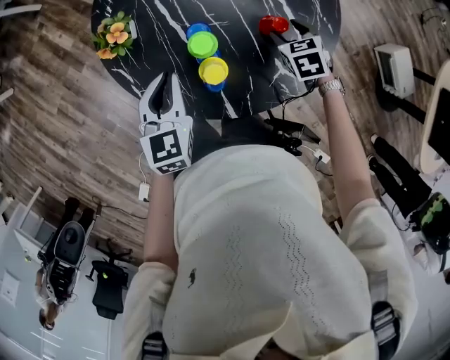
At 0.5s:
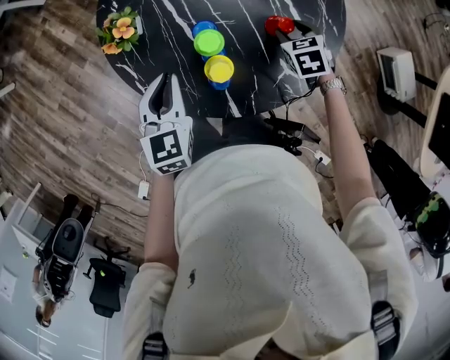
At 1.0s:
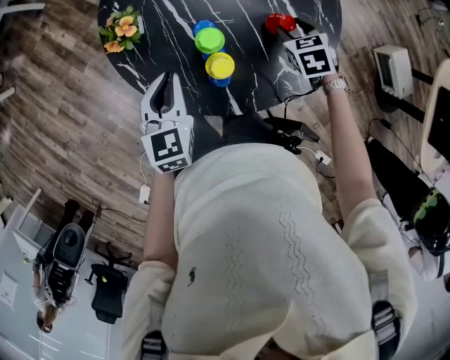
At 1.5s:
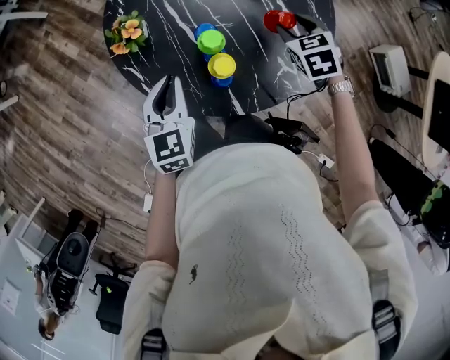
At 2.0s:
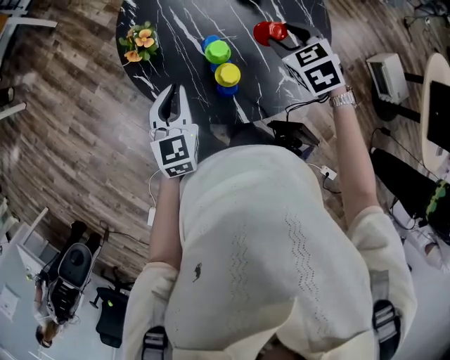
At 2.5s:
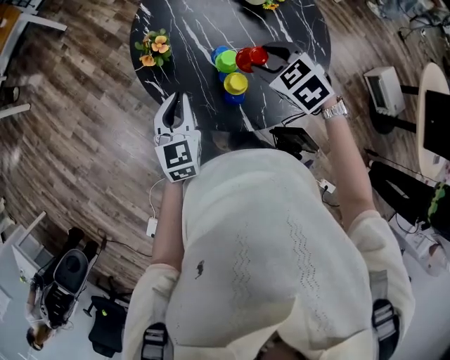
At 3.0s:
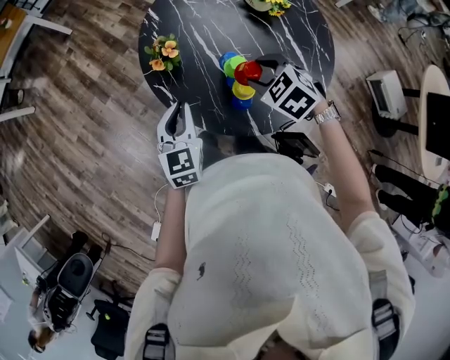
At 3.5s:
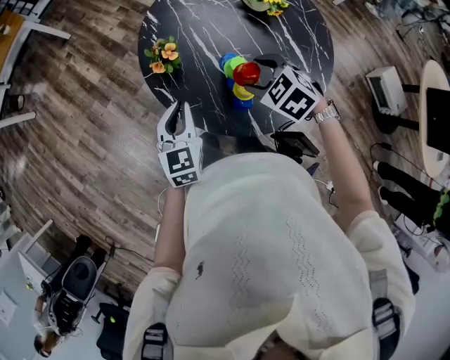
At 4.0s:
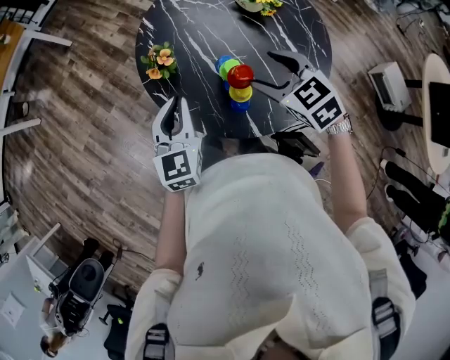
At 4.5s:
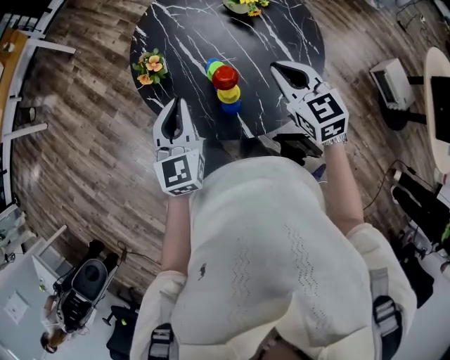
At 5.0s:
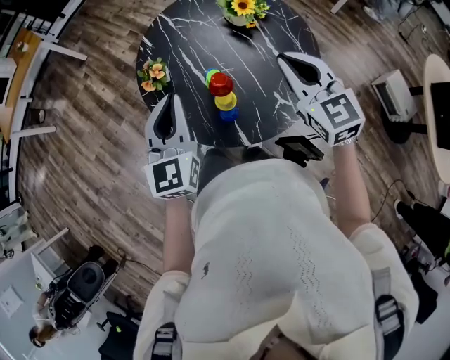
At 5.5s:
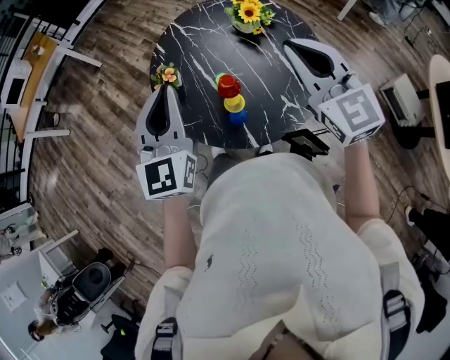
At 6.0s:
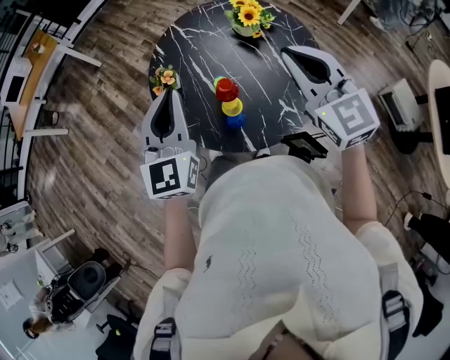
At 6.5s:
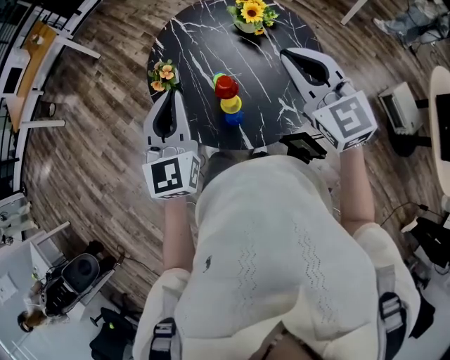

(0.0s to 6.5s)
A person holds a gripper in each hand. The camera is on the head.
0.0s - 2.0s: The left gripper goes roughly 5 cm to the left. The right gripper is displaced upward and to the left by roughly 20 cm.
2.0s - 4.5s: The right gripper goes roughly 10 cm upward and backward, goes to the left and returns, about 15 cm each way, changes its angle by some 30 degrees, and closes up, while the left gripper heads upward, covering some 10 cm.
4.5s - 6.5s: Both grippers travel together upward, roughly 15 cm. The right gripper swivels roughly 20 degrees.

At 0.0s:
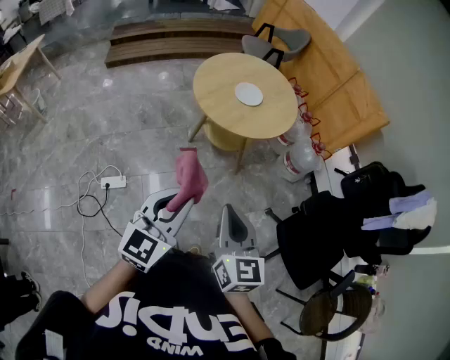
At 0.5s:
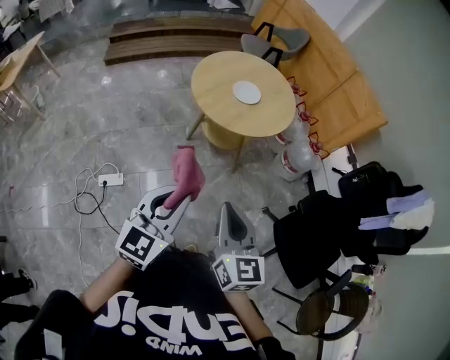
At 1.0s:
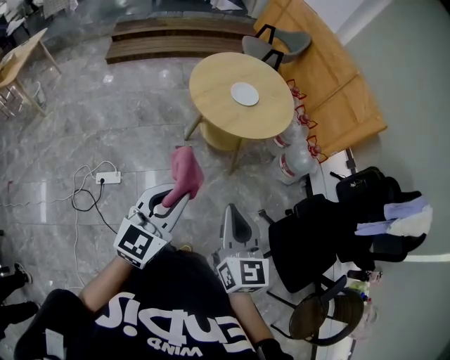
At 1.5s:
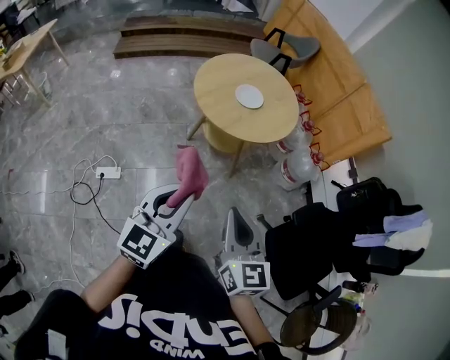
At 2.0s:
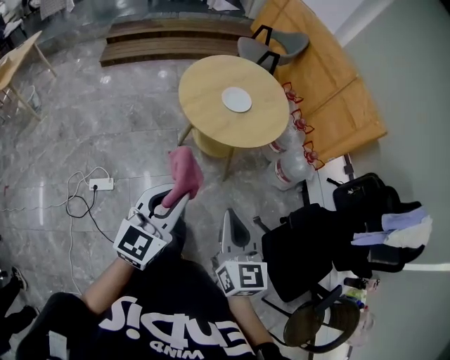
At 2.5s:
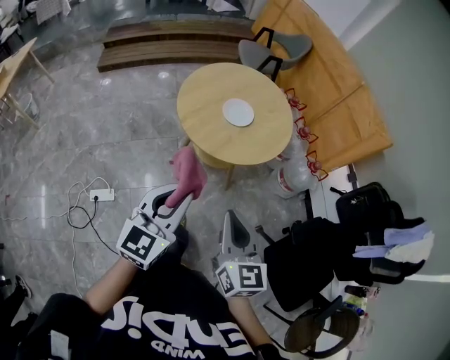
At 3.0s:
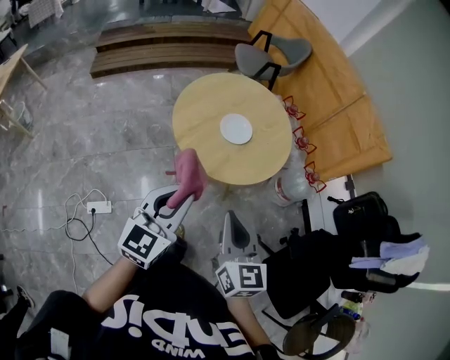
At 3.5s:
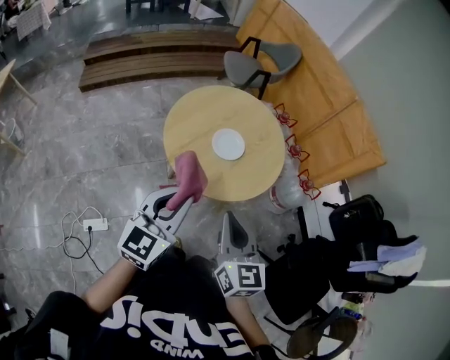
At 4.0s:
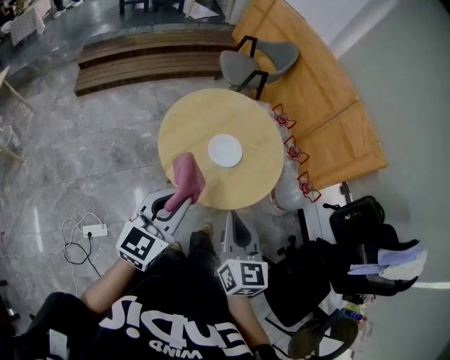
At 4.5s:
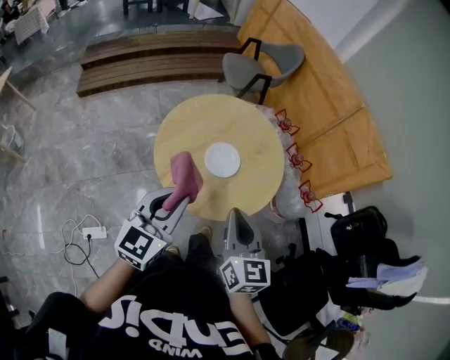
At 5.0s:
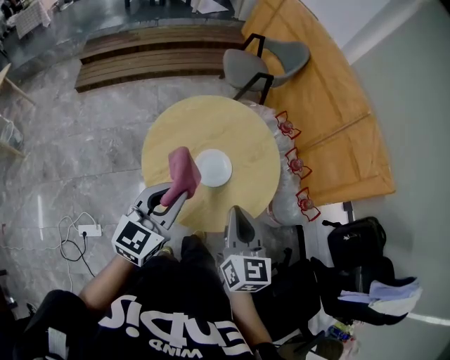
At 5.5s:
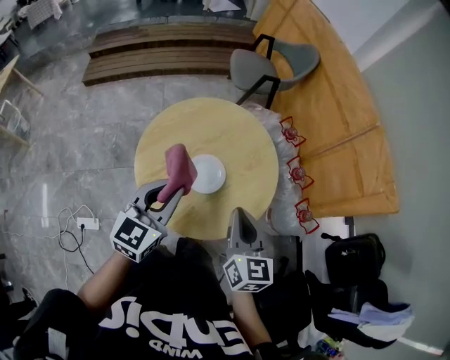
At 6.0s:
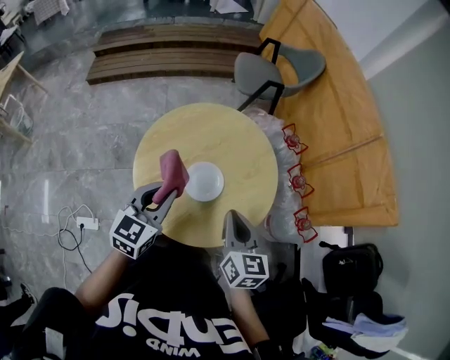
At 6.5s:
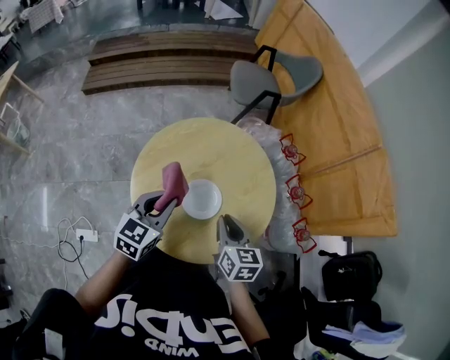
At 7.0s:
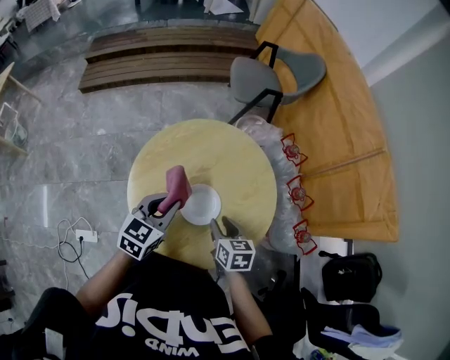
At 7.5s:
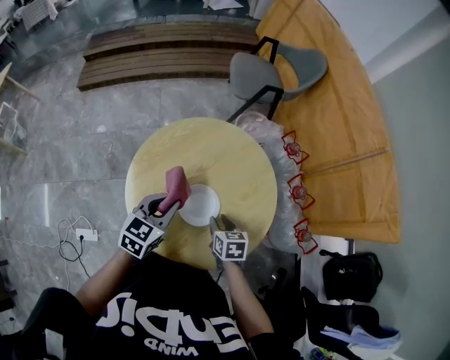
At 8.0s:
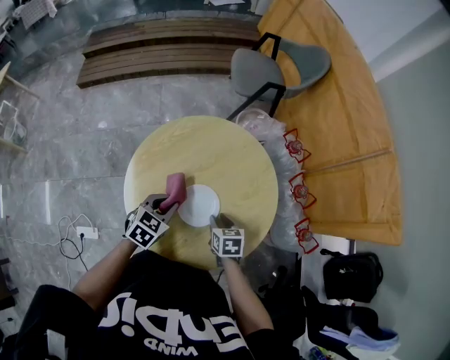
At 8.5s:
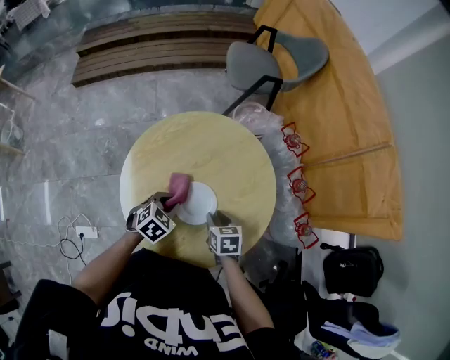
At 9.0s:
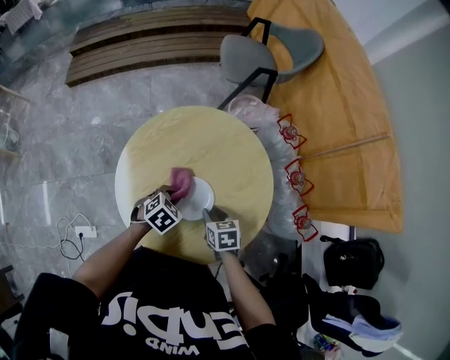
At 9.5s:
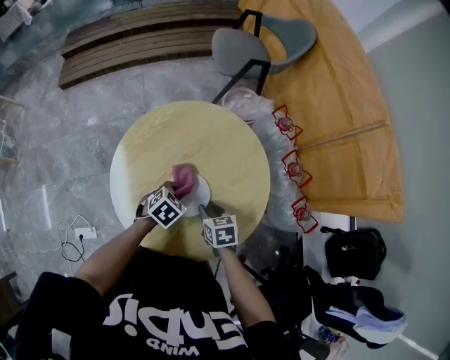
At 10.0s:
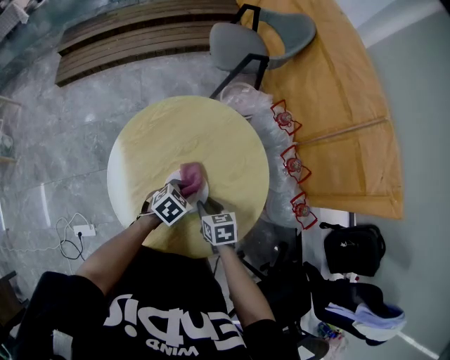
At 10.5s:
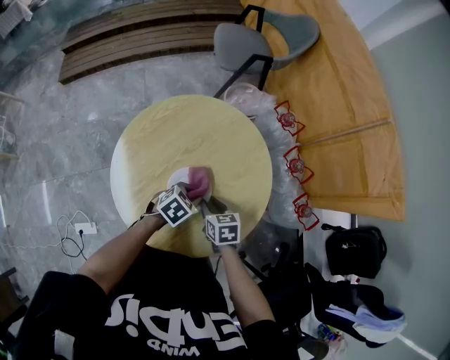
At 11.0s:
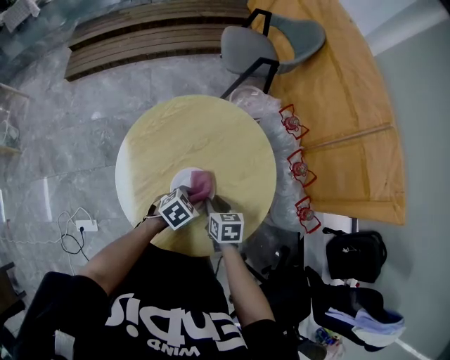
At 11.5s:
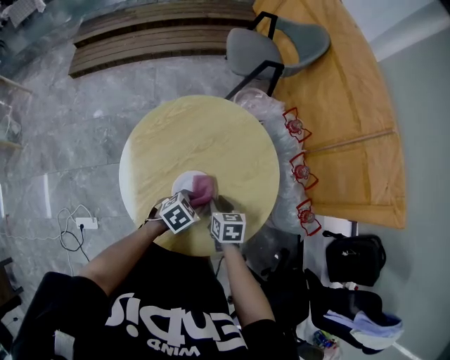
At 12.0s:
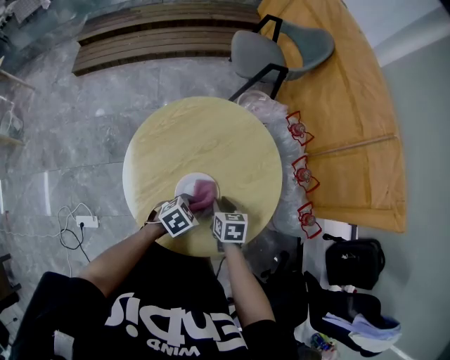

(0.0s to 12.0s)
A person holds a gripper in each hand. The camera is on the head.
0.0s - 2.0s: The left gripper moves forward, approximately 10 cm. The right gripper is displaced to the right and forward by roughly 10 cm.
2.0s - 4.0s: The two grippers go approximately 30 cm forward.
4.0s - 6.0s: The left gripper heads forward, covering about 20 cm. Meanwhile the right gripper is displaced forward and to the right by approximately 25 cm.
6.0s - 8.0s: The right gripper heads downward, covering approximately 25 cm, tilts its fingers about 30 degrees downward, and opens its fingers; the left gripper travels downward and forward by some 20 cm, and swivels some 30 degrees.
8.0s - 10.0s: The left gripper shifts about 15 cm to the right and downward, and changes its angle by approximately 20 degrees.
10.0s - 12.0s: The left gripper moves backward, some 5 cm.

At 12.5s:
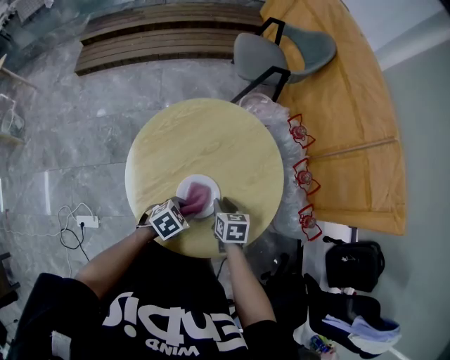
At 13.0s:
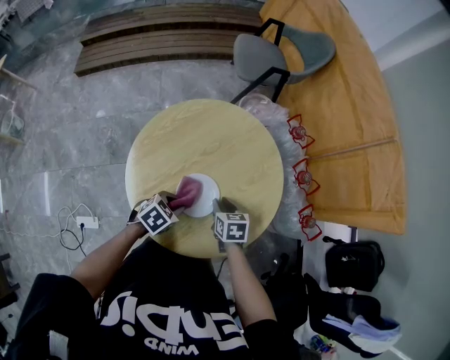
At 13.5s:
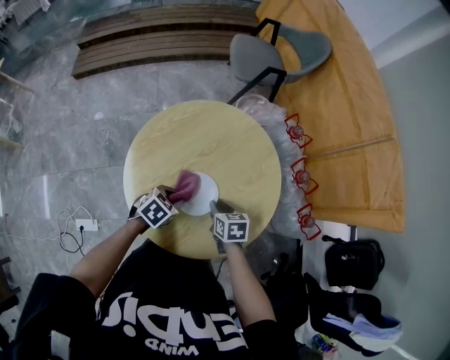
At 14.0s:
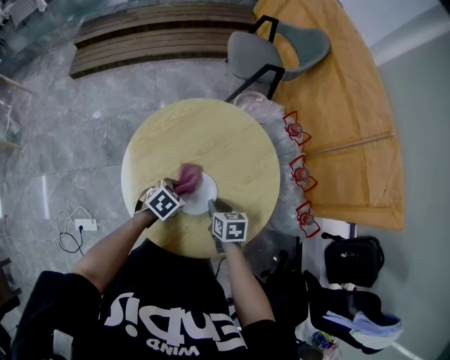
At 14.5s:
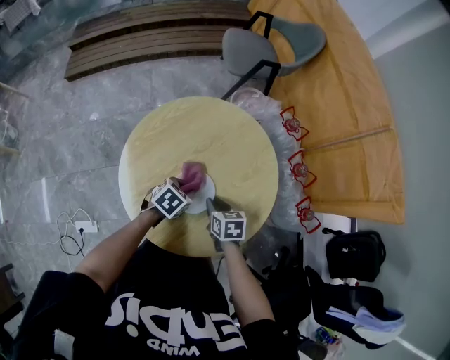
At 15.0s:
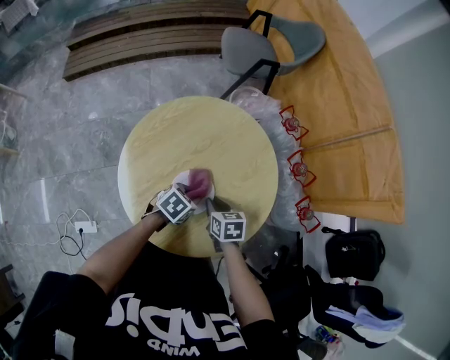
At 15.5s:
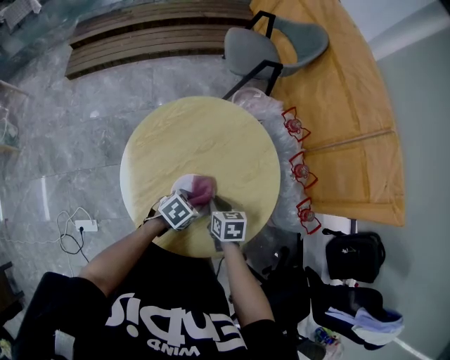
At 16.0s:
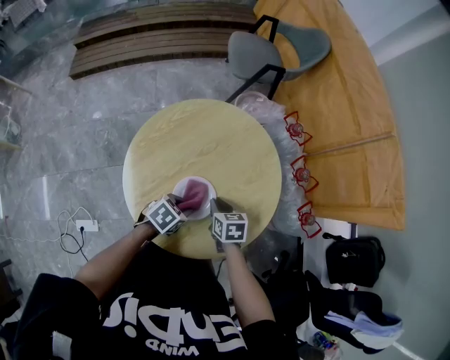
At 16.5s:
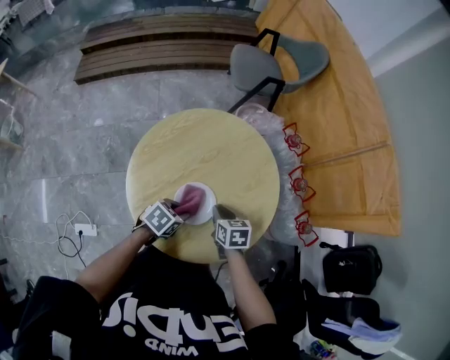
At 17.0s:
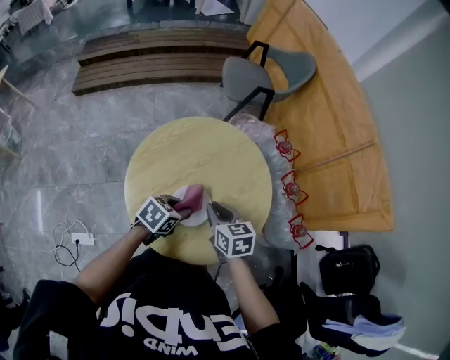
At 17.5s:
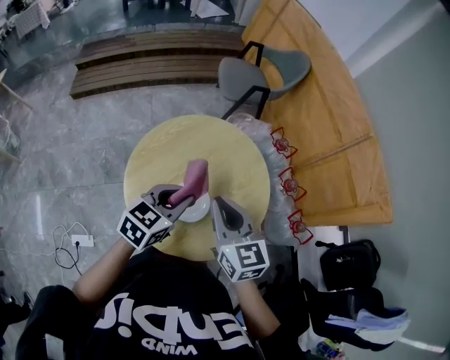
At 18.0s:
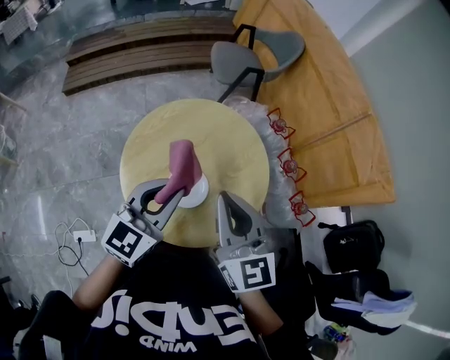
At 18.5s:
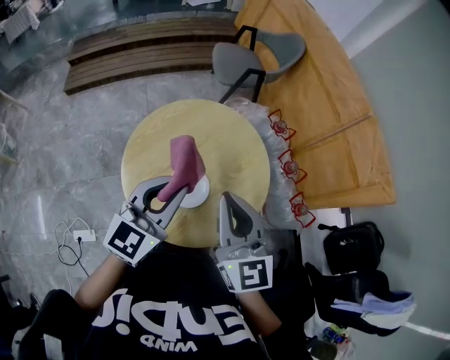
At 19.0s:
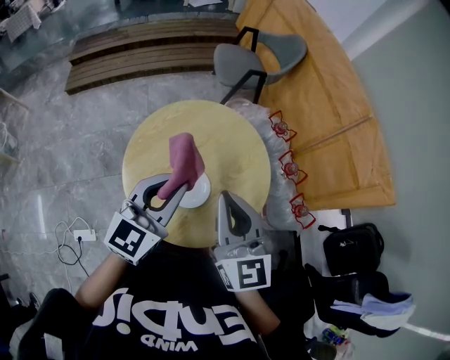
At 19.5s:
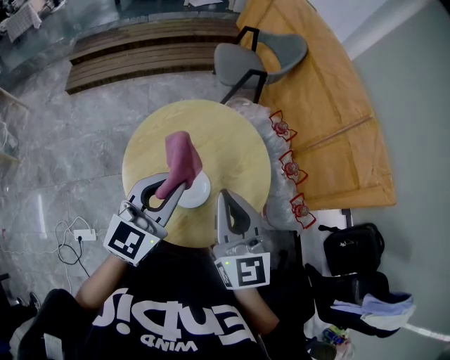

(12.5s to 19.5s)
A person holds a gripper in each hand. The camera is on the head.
12.5s - 14.5s: The left gripper heads forward, covering some 5 cm.
14.5s - 16.0s: The left gripper travels backward by some 5 cm.
16.0s - 17.5s: The grippers both shift upward by approximately 25 cm. The right gripper tilts its fingers approximately 40 degrees upward. Meanwhile the left gripper turns by some 30 degrees.
17.5s - 19.5s: The grippers both shift upward by approximately 10 cm. The left gripper turns by some 30 degrees.

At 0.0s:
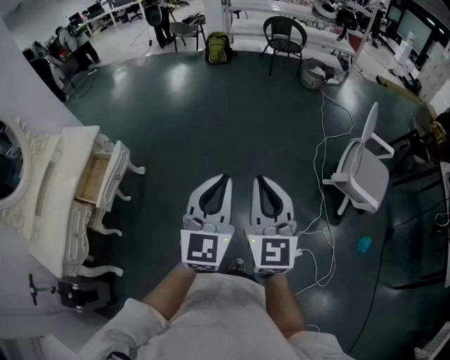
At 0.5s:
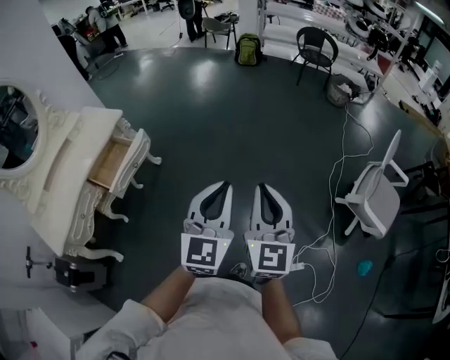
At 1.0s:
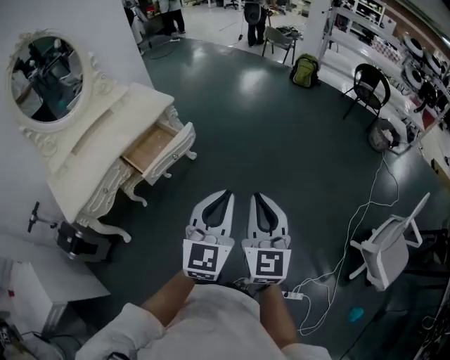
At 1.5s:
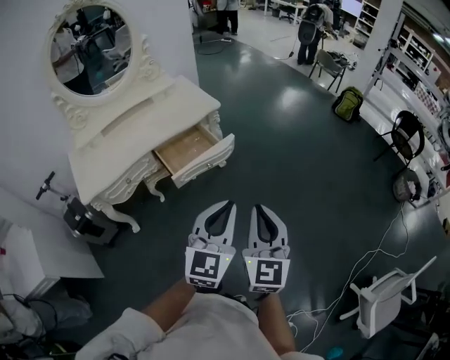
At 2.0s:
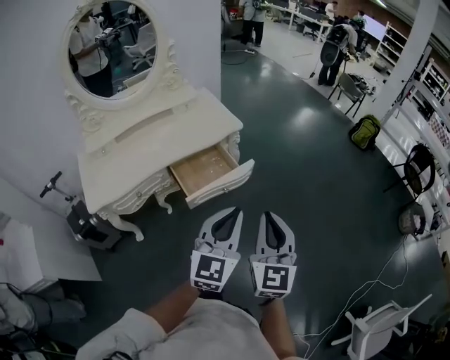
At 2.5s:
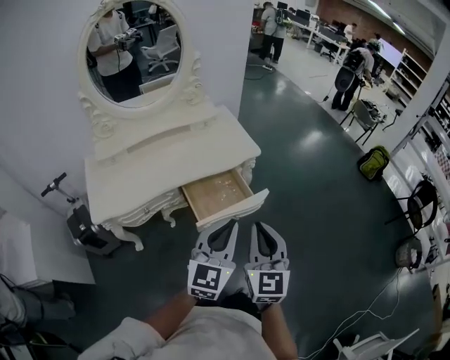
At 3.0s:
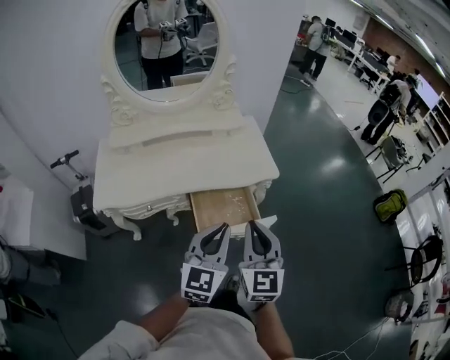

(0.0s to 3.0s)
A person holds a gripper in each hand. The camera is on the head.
0.0s - 1.5s: The left gripper shifts by approximately 35 cm, and turns by roughly 40 degrees. Meanwhile the right gripper moves approximately 35 cm, and changes its angle by about 40 degrees.
1.5s - 3.0s: The left gripper moves about 30 cm, and swivels some 30 degrees, while the right gripper changes place by some 35 cm, and changes its angle by approximately 30 degrees.
